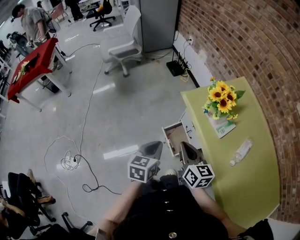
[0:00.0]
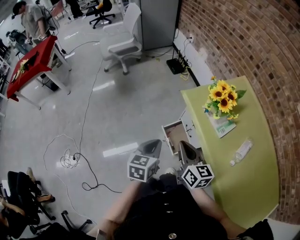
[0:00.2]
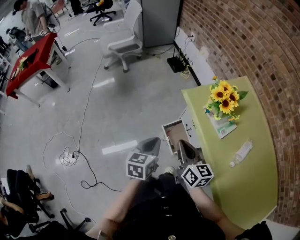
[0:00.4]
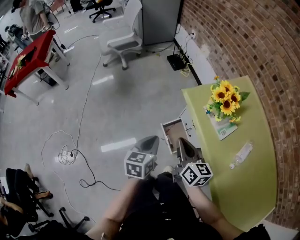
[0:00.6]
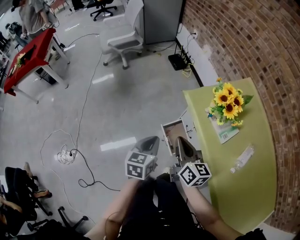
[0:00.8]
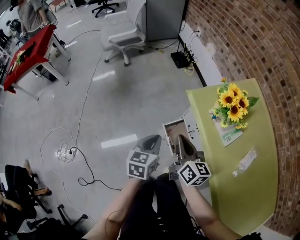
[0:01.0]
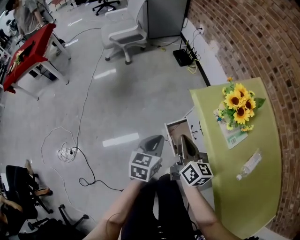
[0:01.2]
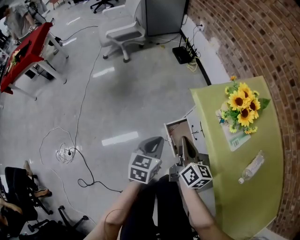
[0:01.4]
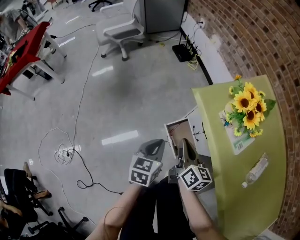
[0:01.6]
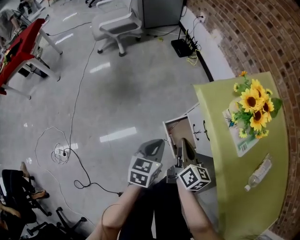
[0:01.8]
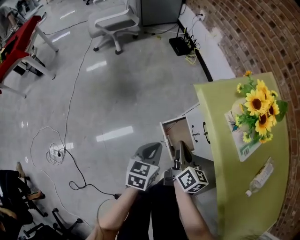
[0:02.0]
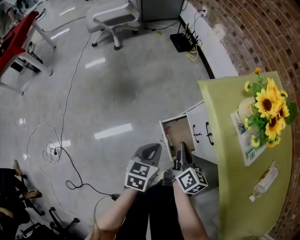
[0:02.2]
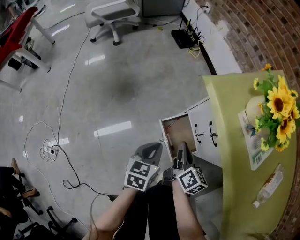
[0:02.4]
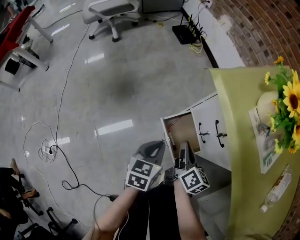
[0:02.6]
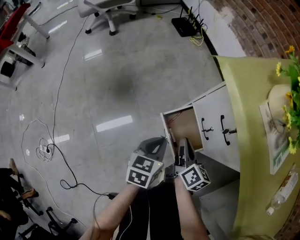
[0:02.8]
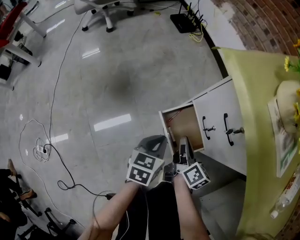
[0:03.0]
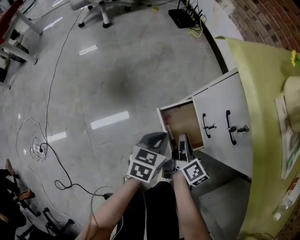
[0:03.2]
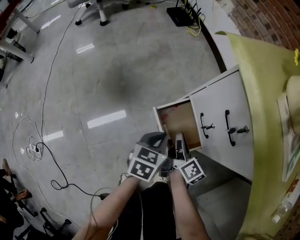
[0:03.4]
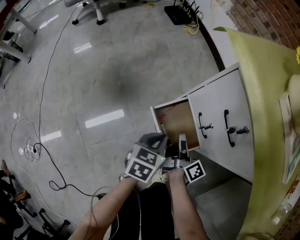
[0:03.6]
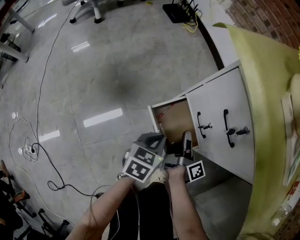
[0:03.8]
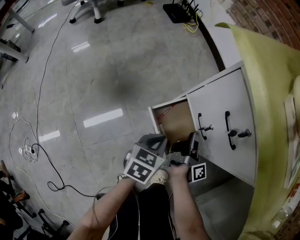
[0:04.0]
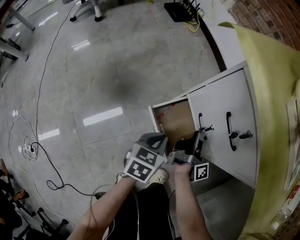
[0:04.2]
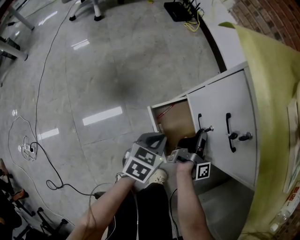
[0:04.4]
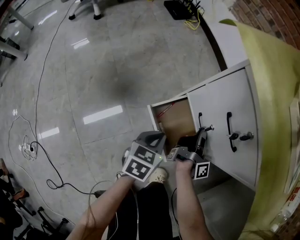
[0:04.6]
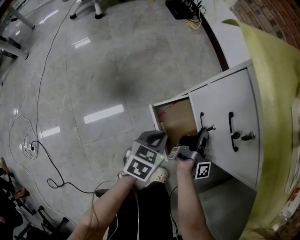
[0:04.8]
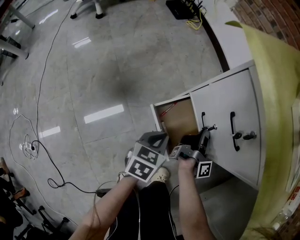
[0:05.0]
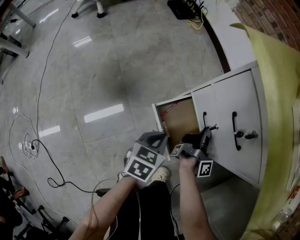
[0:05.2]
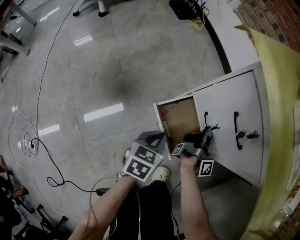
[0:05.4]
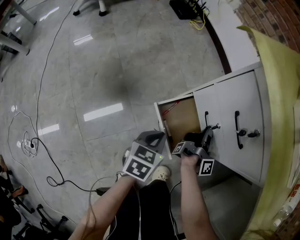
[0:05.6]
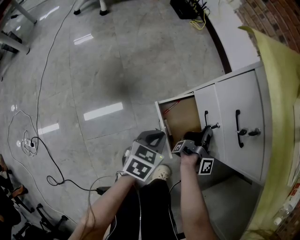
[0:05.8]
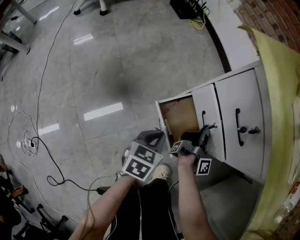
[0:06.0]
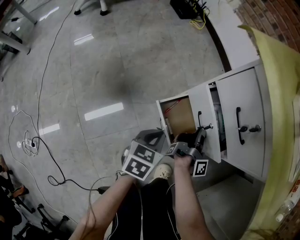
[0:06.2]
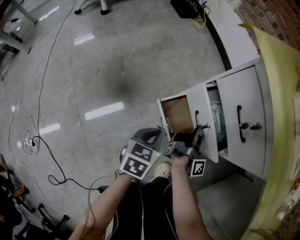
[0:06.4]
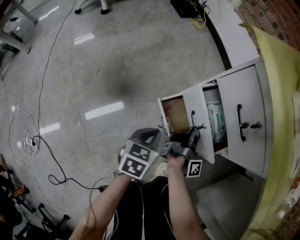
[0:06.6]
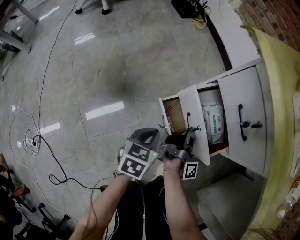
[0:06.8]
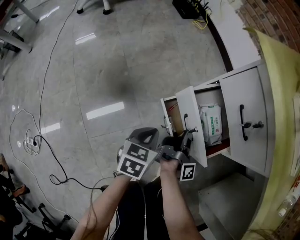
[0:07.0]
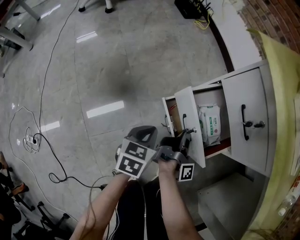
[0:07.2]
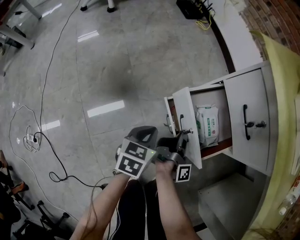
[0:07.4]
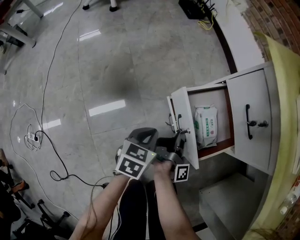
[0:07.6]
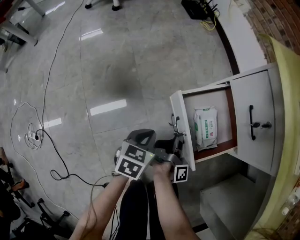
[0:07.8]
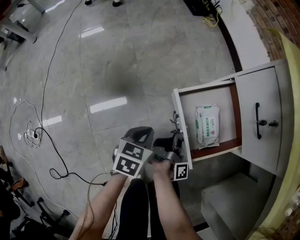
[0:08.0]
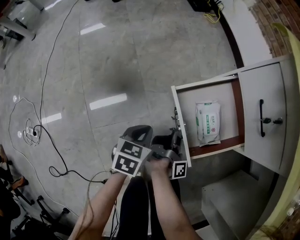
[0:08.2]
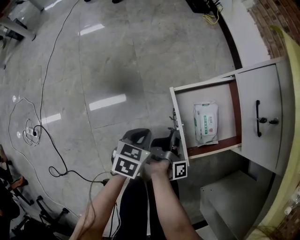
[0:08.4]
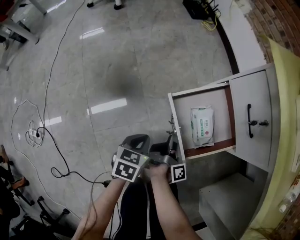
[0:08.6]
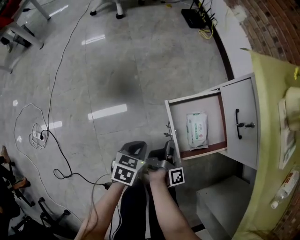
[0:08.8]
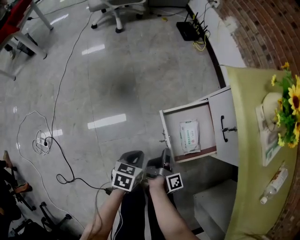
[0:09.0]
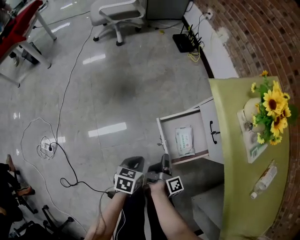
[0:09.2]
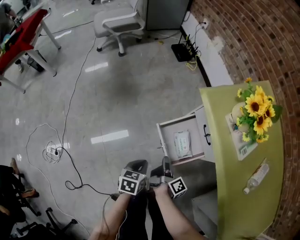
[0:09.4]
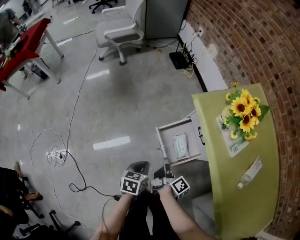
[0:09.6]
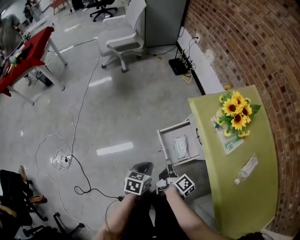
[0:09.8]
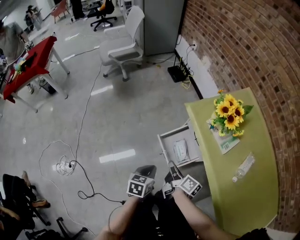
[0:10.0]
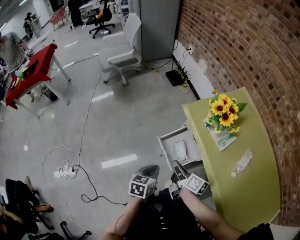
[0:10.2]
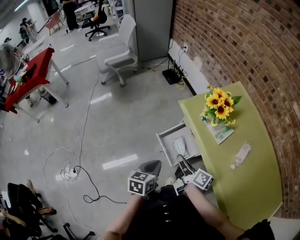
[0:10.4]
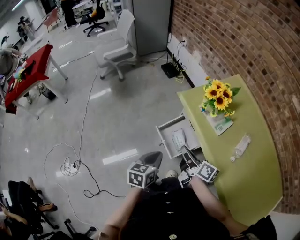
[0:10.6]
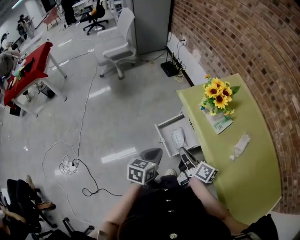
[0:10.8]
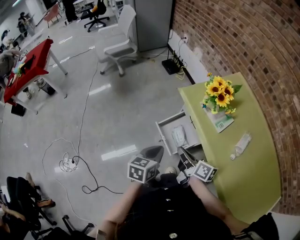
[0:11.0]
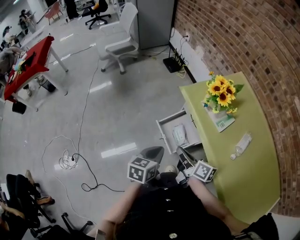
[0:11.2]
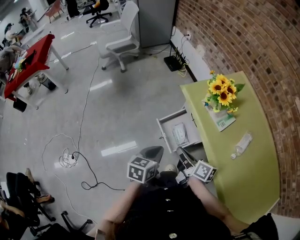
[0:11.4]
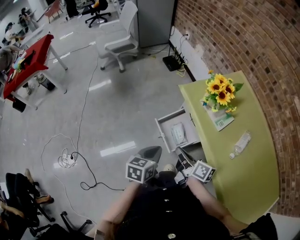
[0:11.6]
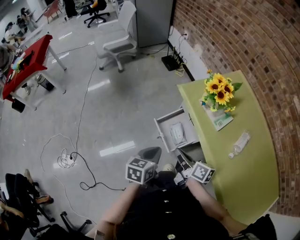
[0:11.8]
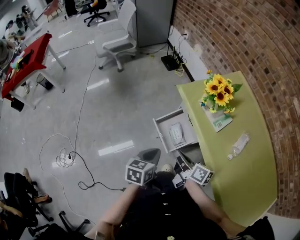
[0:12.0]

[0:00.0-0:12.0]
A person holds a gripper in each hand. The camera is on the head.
0.0 to 1.6 s: Both grippers move downward and forward, roughly 15 cm. The right gripper turns by approximately 20 degrees.
1.6 to 3.0 s: Both grippers move downward, about 30 cm. The right gripper swivels about 20 degrees.
3.0 to 4.4 s: The right gripper goes roughly 15 cm to the right, downward and forward, and rotates about 50 degrees. Meanwhile the left gripper shifts roughly 5 cm downward.
4.4 to 6.0 s: There are only small adjustments of the grippers.
6.0 to 7.6 s: The left gripper travels backward by about 5 cm. Meanwhile the right gripper moves backward and to the left, about 15 cm.
7.6 to 9.0 s: The right gripper heads upward and backward, covering some 10 cm, and changes its angle by approximately 20 degrees; the left gripper moves backward and upward, roughly 10 cm.
9.0 to 10.4 s: The two grippers go roughly 40 cm upward. The right gripper rotates roughly 50 degrees.
10.4 to 12.0 s: The grippers move only a little.

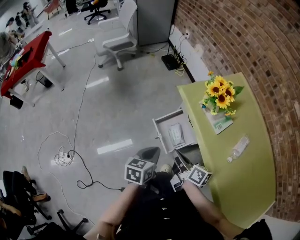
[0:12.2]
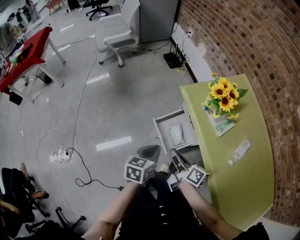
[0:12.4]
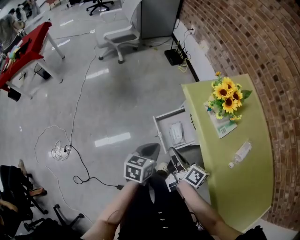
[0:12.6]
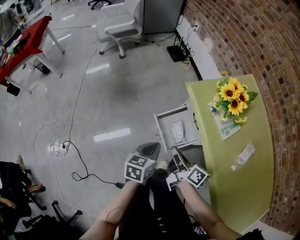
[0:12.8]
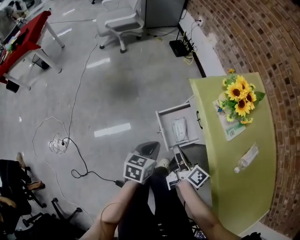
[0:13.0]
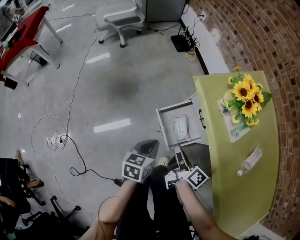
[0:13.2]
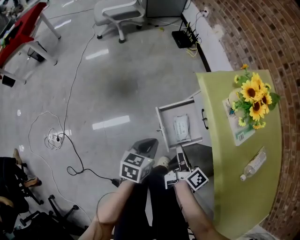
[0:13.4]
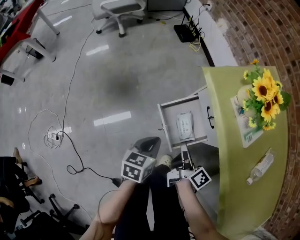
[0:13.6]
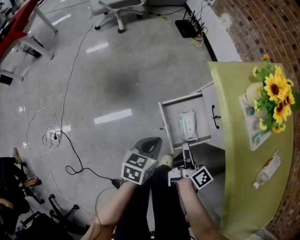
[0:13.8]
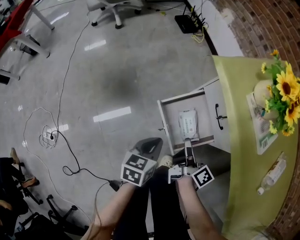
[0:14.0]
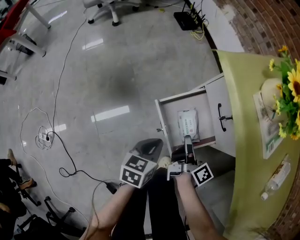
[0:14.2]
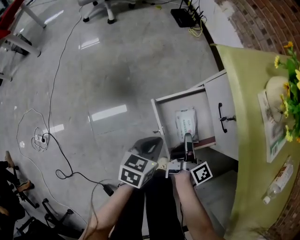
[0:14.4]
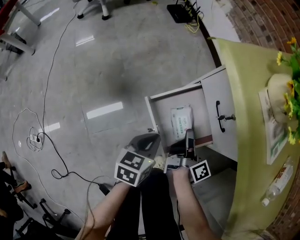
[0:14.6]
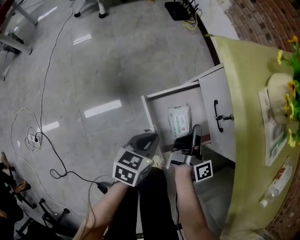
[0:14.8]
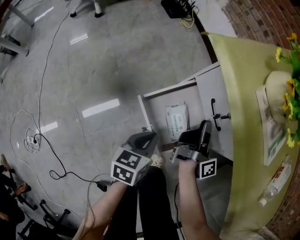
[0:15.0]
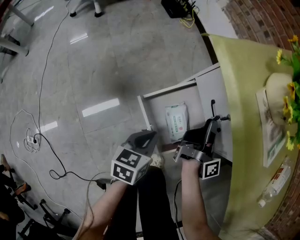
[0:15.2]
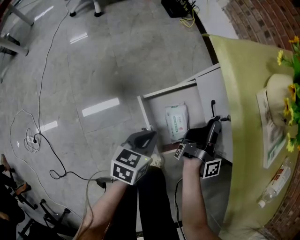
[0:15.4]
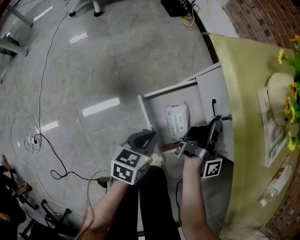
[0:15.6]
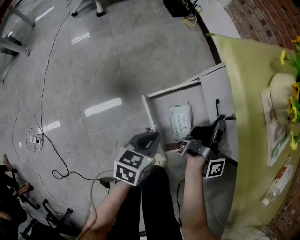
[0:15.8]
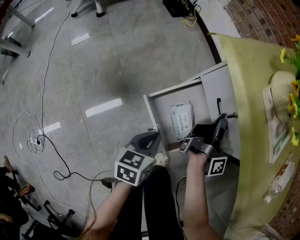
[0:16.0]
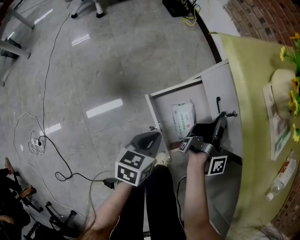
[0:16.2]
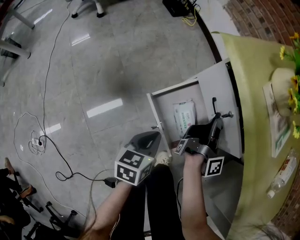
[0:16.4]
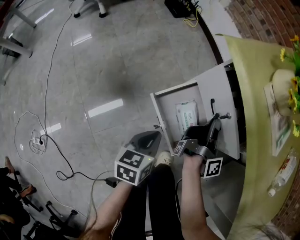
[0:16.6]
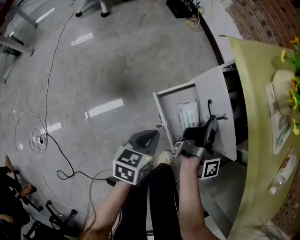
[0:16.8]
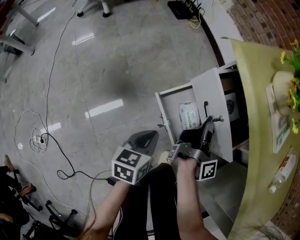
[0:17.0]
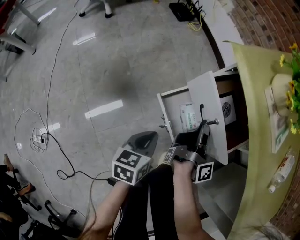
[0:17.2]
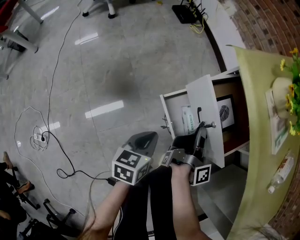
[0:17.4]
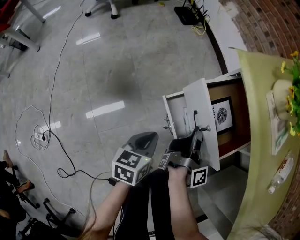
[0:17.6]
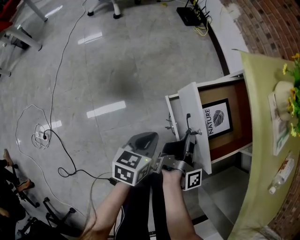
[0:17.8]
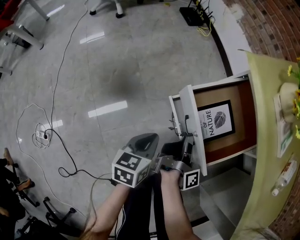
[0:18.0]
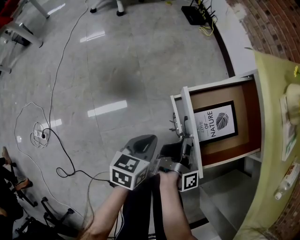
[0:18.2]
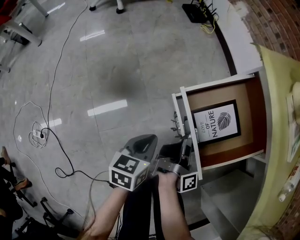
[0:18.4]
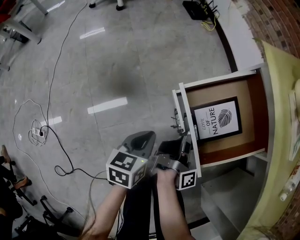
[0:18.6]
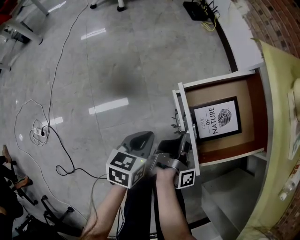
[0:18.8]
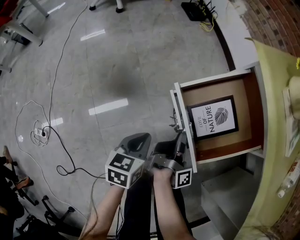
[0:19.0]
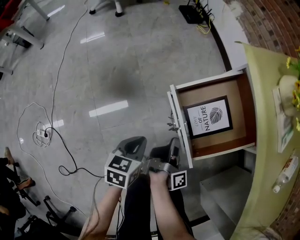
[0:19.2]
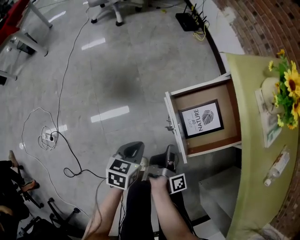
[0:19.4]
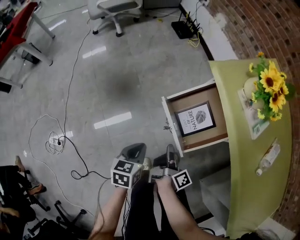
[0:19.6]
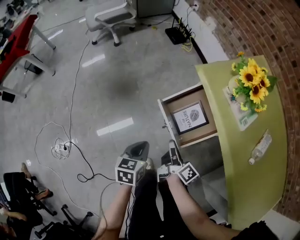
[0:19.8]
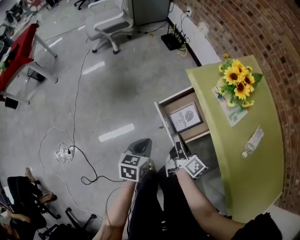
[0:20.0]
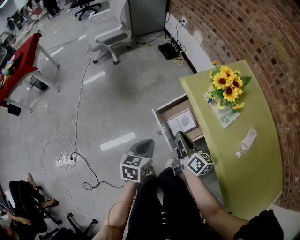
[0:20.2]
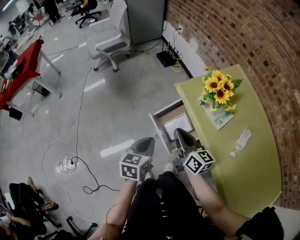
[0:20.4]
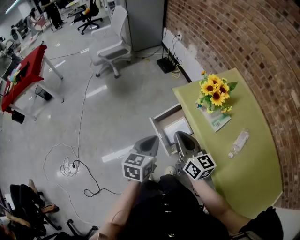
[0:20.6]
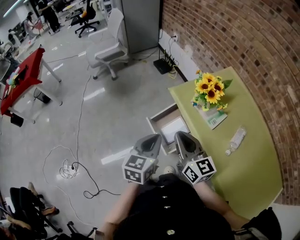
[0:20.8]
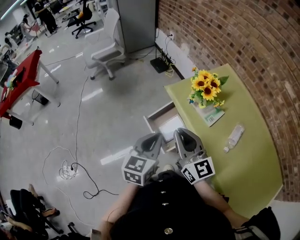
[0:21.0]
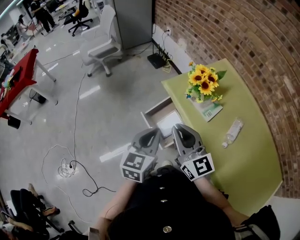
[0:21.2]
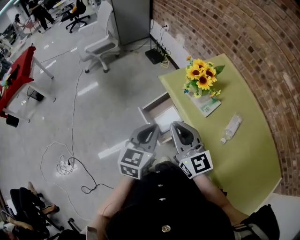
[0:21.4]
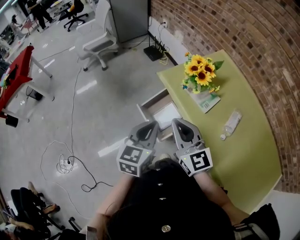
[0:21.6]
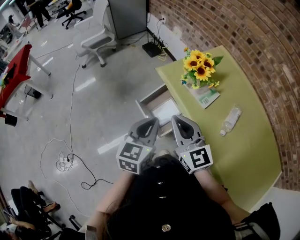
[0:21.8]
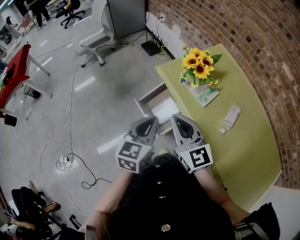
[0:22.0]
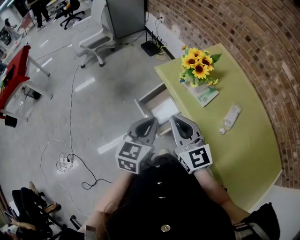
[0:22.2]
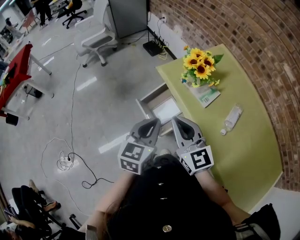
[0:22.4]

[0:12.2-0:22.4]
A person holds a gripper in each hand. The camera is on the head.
12.2 to 13.6 s: The two grippers go approximately 20 cm downward and forward. The right gripper rotates approximately 20 degrees.
13.6 to 15.2 s: The left gripper travels downward and forward by about 15 cm. Meanwhile the right gripper is displaced forward, to the right and downward by some 20 cm, swivels about 40 degrees, and opens its fingers.
15.2 to 16.6 s: The right gripper closes up.
16.6 to 18.0 s: The left gripper shifts roughly 10 cm to the left and backward. The right gripper shifts about 15 cm backward and to the left.
18.0 to 19.4 s: Both grippers travel together backward, roughly 5 cm.
19.4 to 21.0 s: Both grippers move upward, roughly 40 cm. The right gripper rolls counterclockwise, seen from behind, by about 90 degrees, while the left gripper rotates approximately 30 degrees.
21.0 to 22.4 s: The grippers make only small movements.

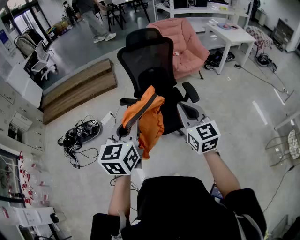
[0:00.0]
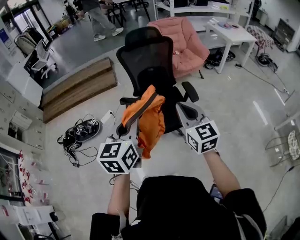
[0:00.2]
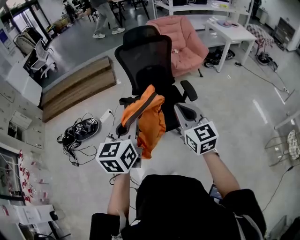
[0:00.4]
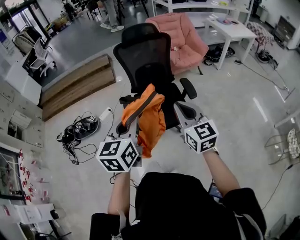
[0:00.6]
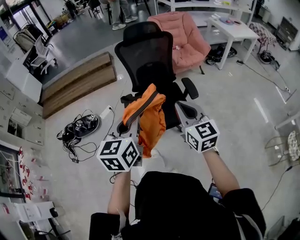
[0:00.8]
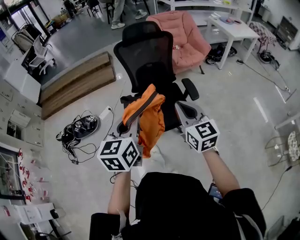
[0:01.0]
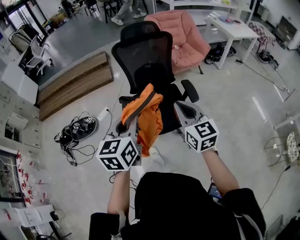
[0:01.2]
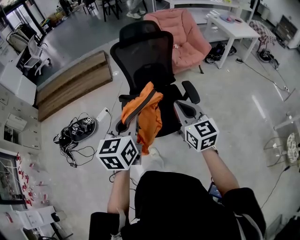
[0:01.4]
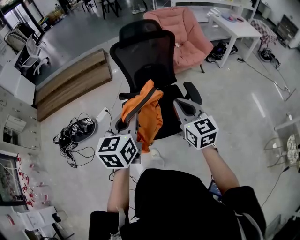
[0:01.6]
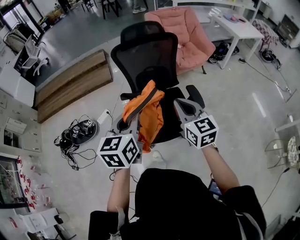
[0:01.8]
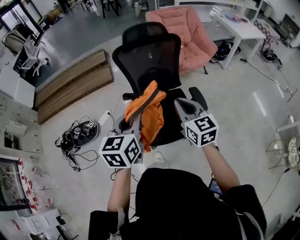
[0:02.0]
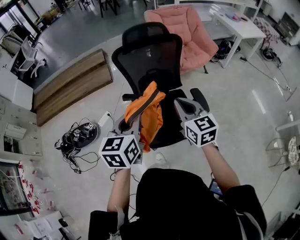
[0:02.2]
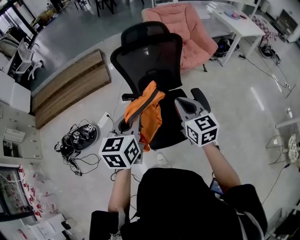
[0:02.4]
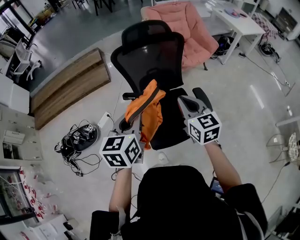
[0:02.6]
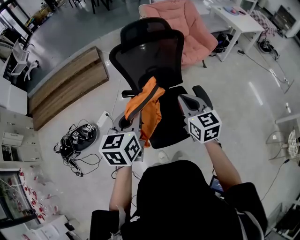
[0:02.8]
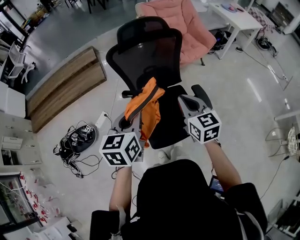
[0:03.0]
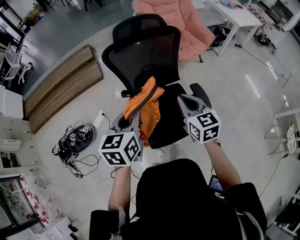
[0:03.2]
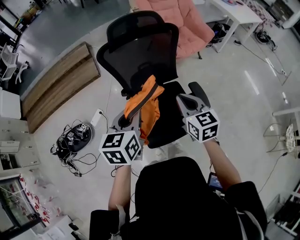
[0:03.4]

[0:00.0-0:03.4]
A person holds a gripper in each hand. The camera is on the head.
0.0 to 1.6 s: Both grippers move forward, about 15 cm.
1.6 to 3.4 s: The two grippers go roughly 25 cm forward.
